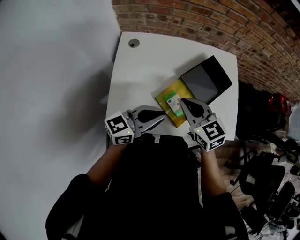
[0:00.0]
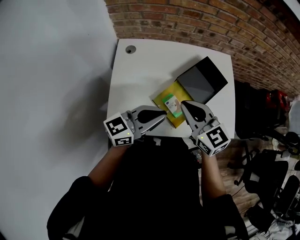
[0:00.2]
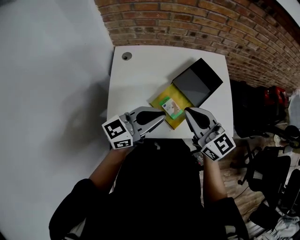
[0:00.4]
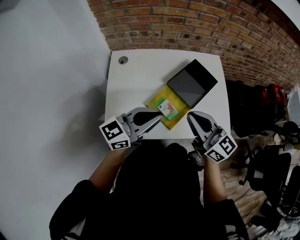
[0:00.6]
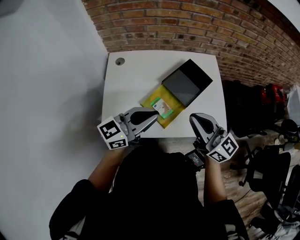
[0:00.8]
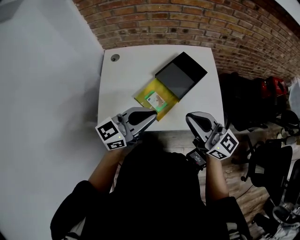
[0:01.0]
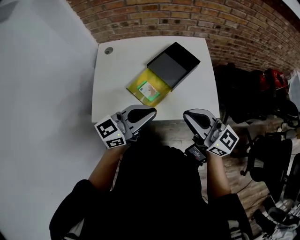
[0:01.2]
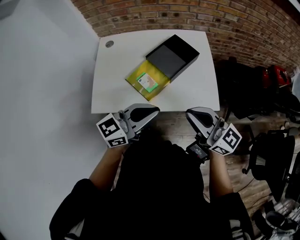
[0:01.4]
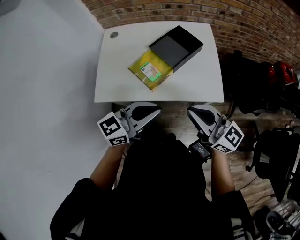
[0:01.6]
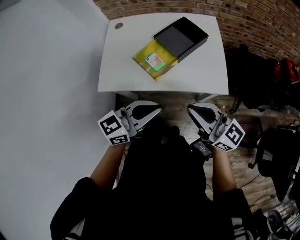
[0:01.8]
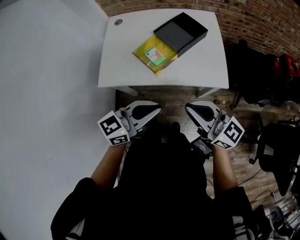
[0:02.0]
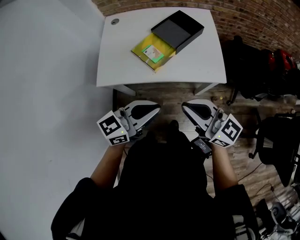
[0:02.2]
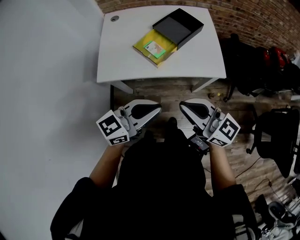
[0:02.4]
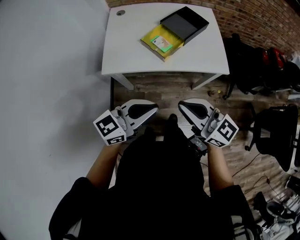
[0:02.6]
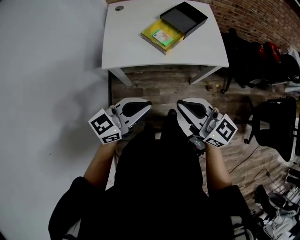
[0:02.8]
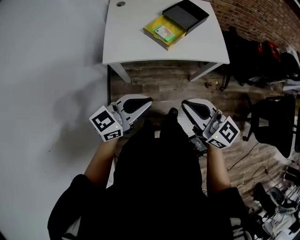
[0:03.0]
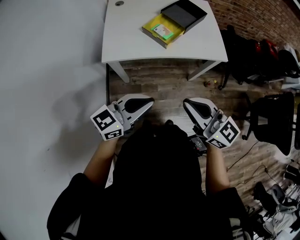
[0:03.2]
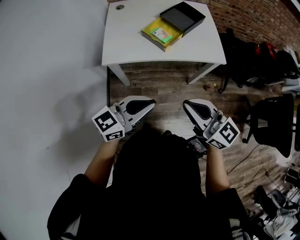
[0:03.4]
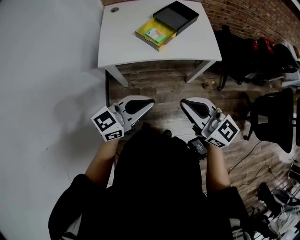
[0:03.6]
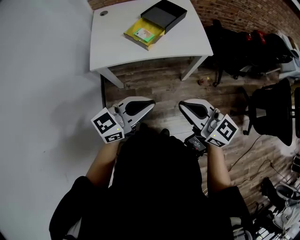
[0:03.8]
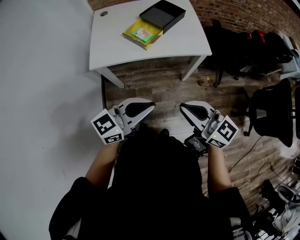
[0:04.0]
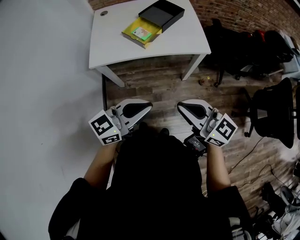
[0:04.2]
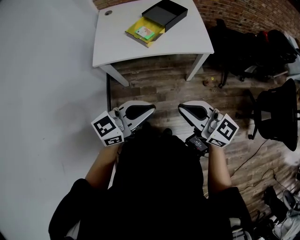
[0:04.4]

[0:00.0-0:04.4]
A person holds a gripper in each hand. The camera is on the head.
0:00.0 to 0:01.4: The grippers both shift to the right, backward and upward by roughly 25 cm. The right gripper tips its fingers upward by approximately 30 degrees.
0:01.4 to 0:03.0: Both grippers move backward and to the left, roughly 30 cm.
0:03.0 to 0:04.4: The grippers both shift to the right and backward by roughly 15 cm.

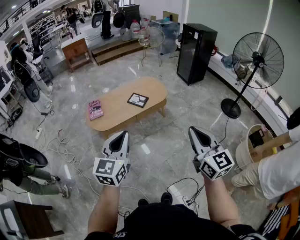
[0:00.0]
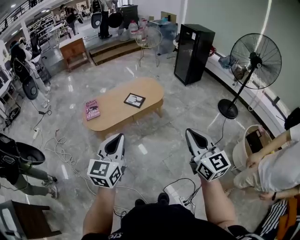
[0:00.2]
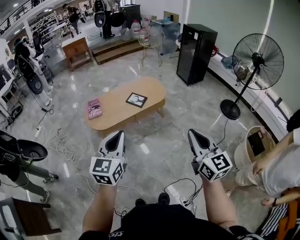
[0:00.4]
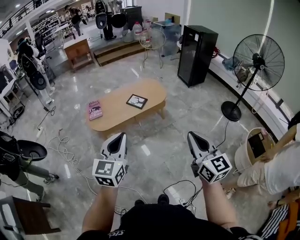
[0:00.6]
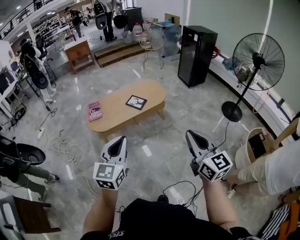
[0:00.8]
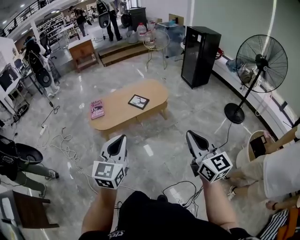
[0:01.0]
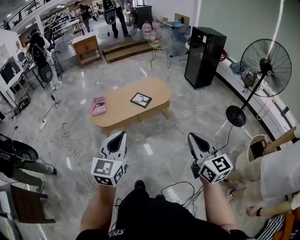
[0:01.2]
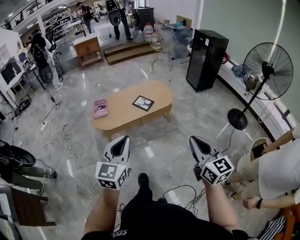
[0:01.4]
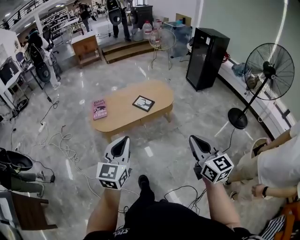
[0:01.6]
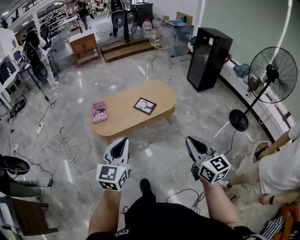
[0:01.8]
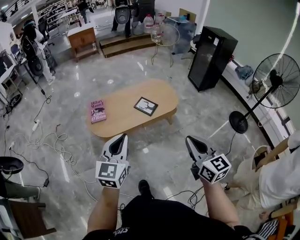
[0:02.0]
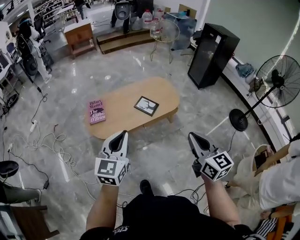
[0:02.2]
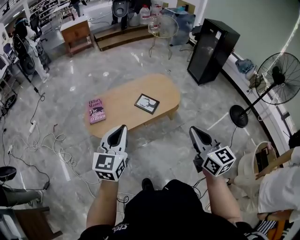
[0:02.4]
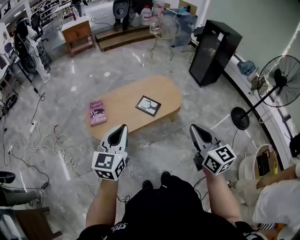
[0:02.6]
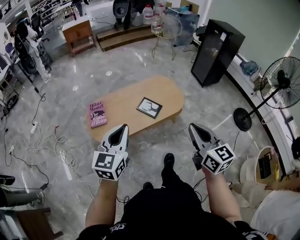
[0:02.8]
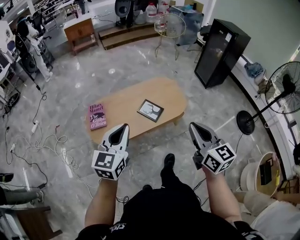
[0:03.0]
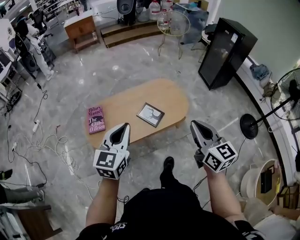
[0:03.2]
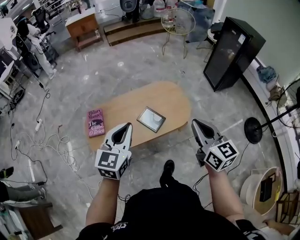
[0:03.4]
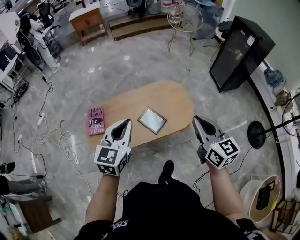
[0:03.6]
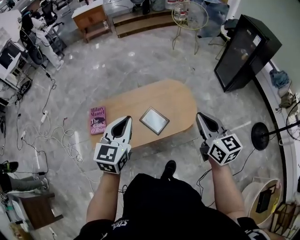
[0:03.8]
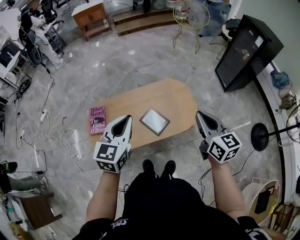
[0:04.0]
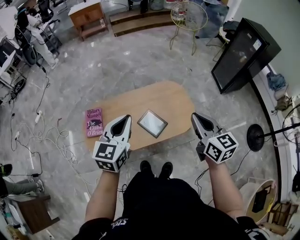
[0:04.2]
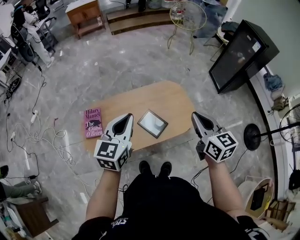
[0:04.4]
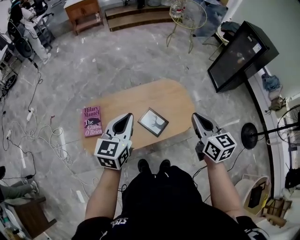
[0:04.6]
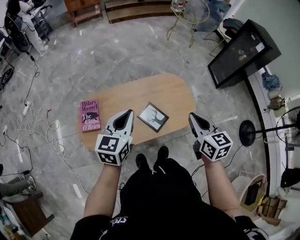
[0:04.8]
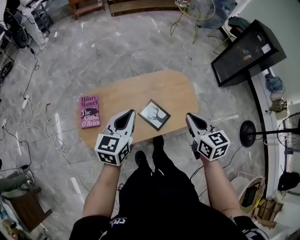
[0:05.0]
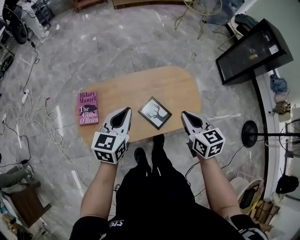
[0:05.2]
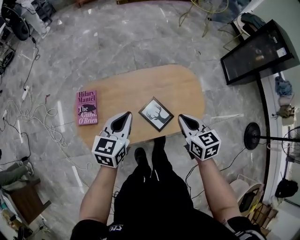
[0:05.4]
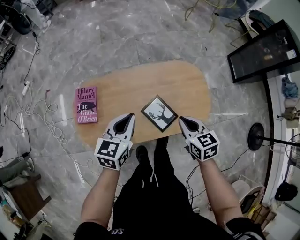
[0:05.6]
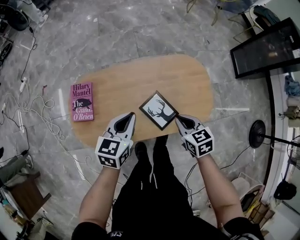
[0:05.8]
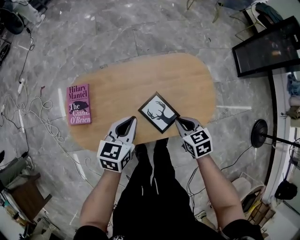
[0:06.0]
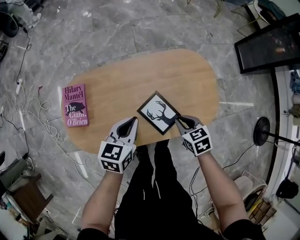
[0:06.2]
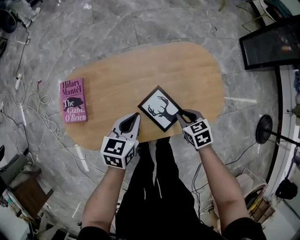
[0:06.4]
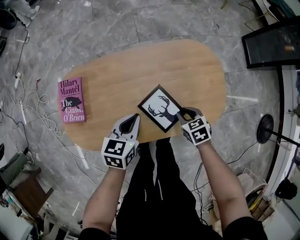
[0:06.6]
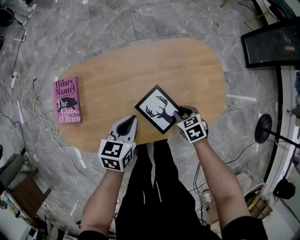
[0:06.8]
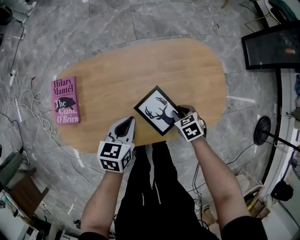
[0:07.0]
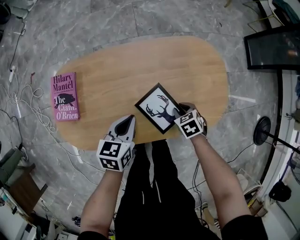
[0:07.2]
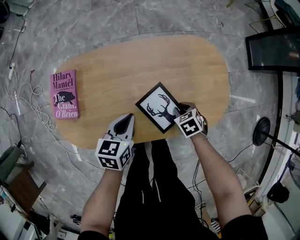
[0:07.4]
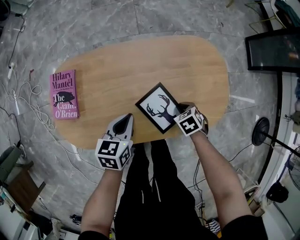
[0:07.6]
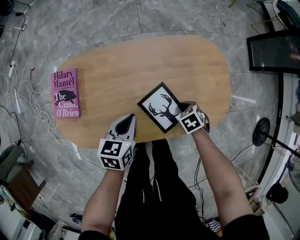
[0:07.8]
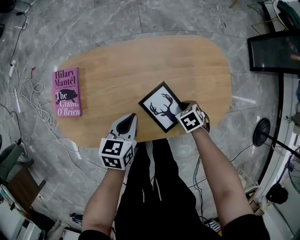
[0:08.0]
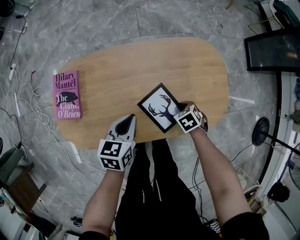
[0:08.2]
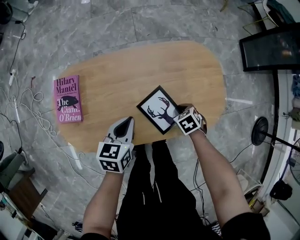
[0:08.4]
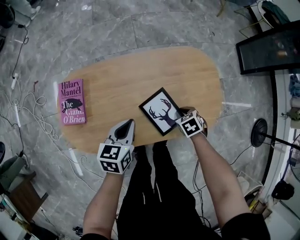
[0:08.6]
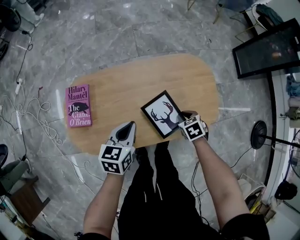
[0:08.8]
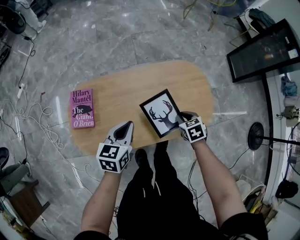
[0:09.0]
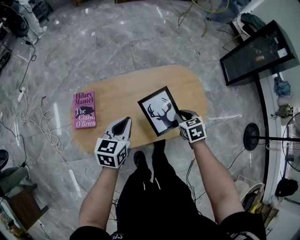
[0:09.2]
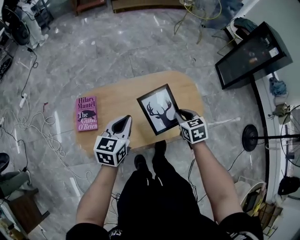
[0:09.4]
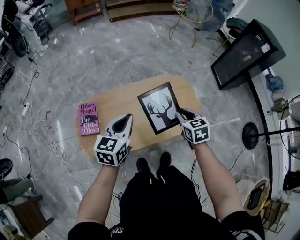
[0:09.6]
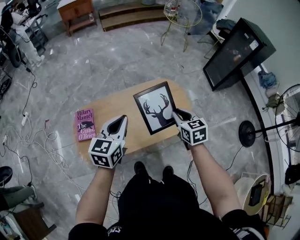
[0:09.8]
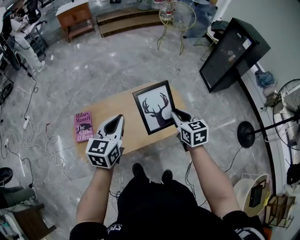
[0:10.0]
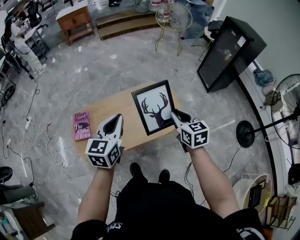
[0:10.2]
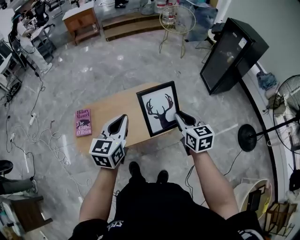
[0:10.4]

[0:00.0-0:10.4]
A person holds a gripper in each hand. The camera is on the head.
0:00.0 to 0:01.4: The right gripper ends up some 5 cm from where it was.
0:01.4 to 0:03.0: The two grippers go about 40 cm forward.
0:03.0 to 0:04.4: Both grippers travel together forward, roughly 30 cm.
0:04.4 to 0:06.0: Both grippers travel together downward, some 35 cm. The right gripper tips its fingers downward by roughly 30 degrees. Meanwhile the left gripper rotates some 20 degrees.
0:06.0 to 0:07.4: Both grippers move downward, some 15 cm. The right gripper turns by roughly 30 degrees.
0:07.4 to 0:09.0: Both grippers move upward, approximately 15 cm.
0:09.0 to 0:10.4: Both grippers travel together upward and to the right, approximately 35 cm. The left gripper swivels approximately 20 degrees. The right gripper angles its fingers upward, by about 40 degrees.

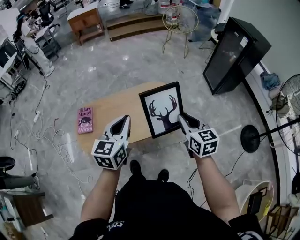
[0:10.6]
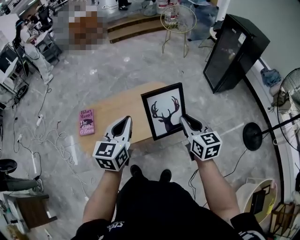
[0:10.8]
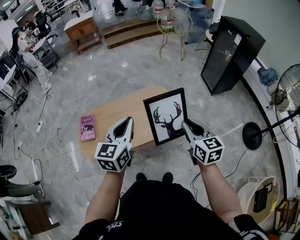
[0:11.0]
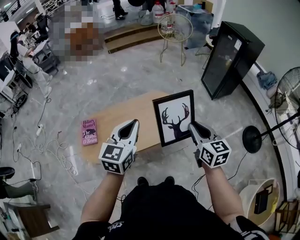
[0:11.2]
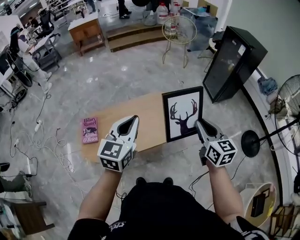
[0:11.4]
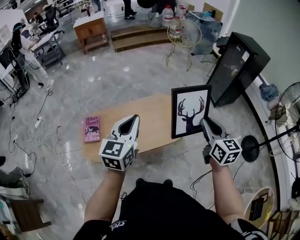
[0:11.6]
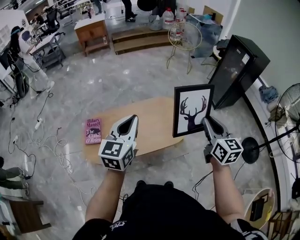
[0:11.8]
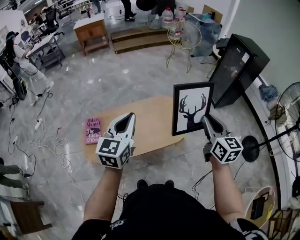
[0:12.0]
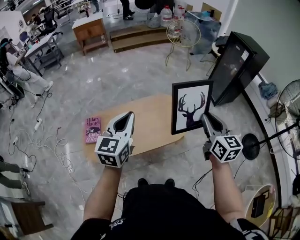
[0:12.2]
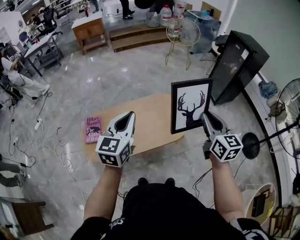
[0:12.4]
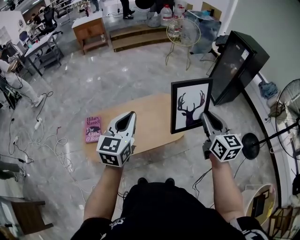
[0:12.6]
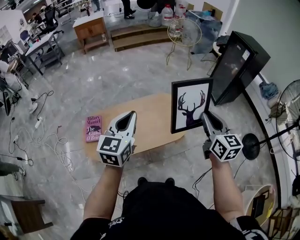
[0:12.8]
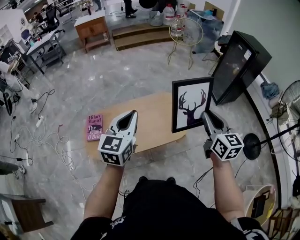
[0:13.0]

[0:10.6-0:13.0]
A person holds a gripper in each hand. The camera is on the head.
0:10.6 to 0:11.8: The right gripper is displaced upward by approximately 10 cm; the left gripper travels to the left and upward by some 10 cm.
0:11.8 to 0:13.0: Both grippers stay put.

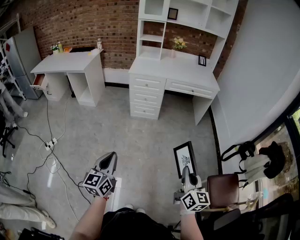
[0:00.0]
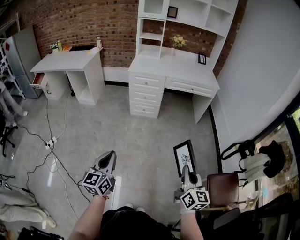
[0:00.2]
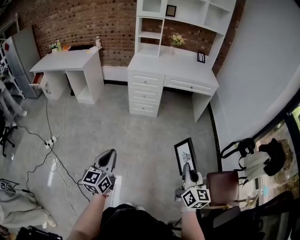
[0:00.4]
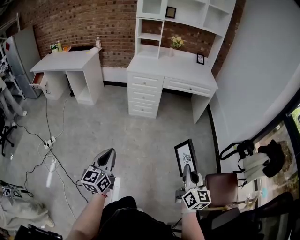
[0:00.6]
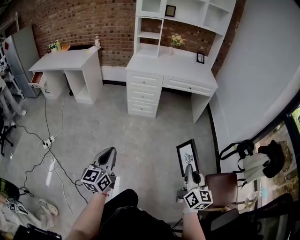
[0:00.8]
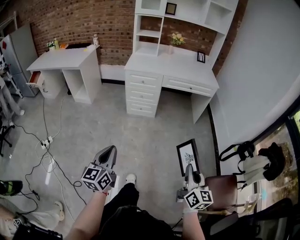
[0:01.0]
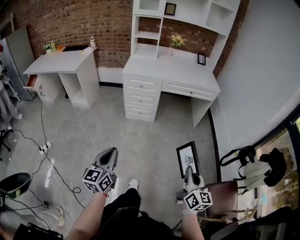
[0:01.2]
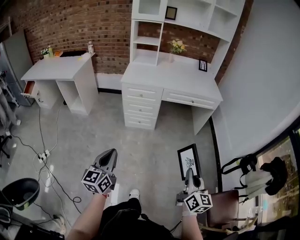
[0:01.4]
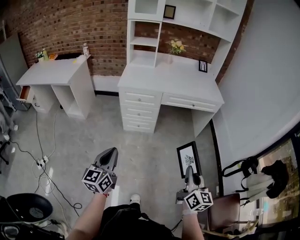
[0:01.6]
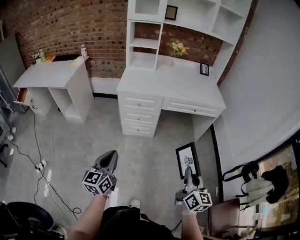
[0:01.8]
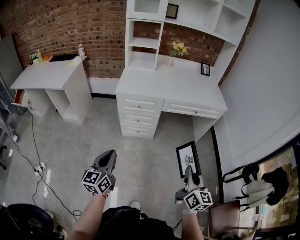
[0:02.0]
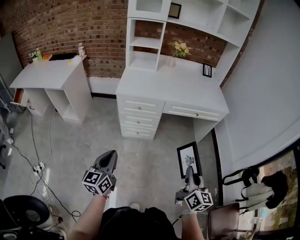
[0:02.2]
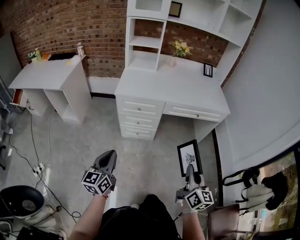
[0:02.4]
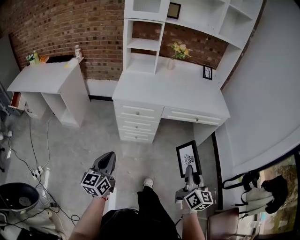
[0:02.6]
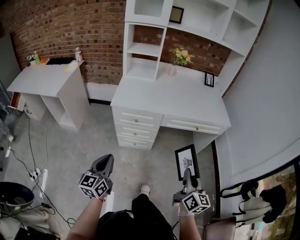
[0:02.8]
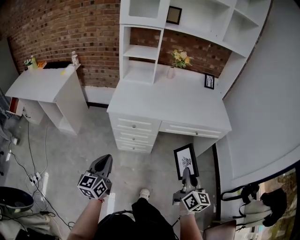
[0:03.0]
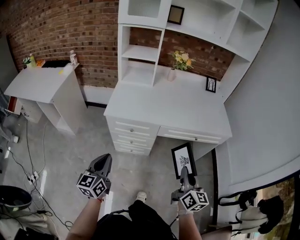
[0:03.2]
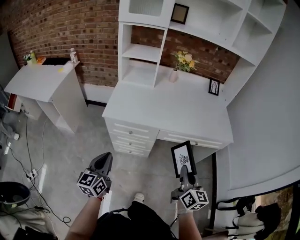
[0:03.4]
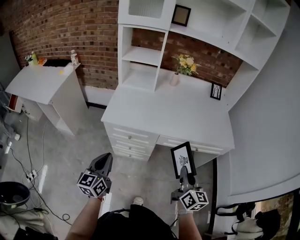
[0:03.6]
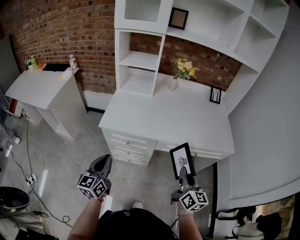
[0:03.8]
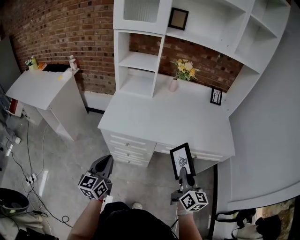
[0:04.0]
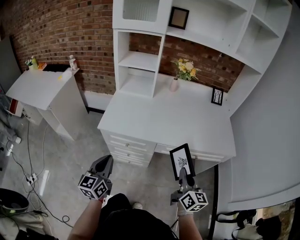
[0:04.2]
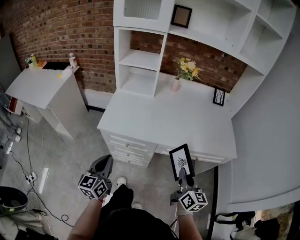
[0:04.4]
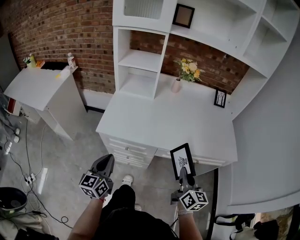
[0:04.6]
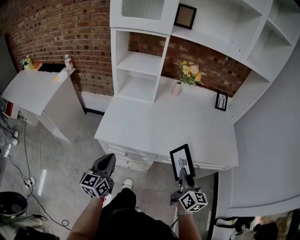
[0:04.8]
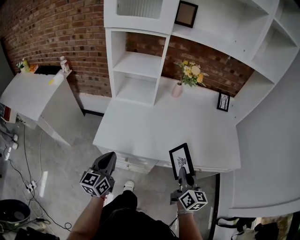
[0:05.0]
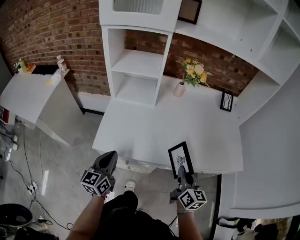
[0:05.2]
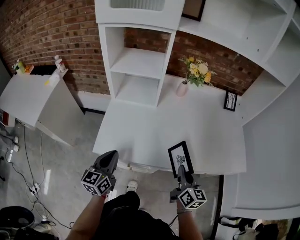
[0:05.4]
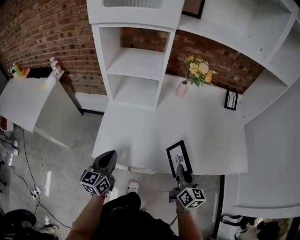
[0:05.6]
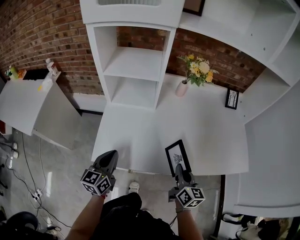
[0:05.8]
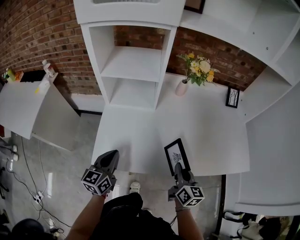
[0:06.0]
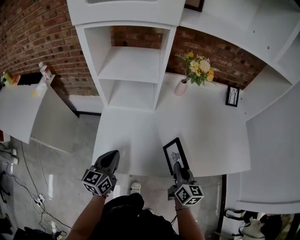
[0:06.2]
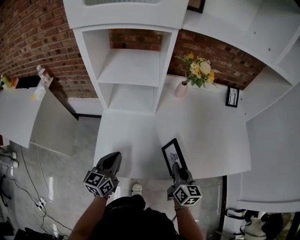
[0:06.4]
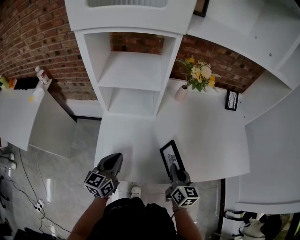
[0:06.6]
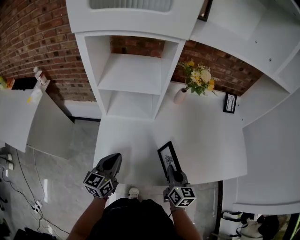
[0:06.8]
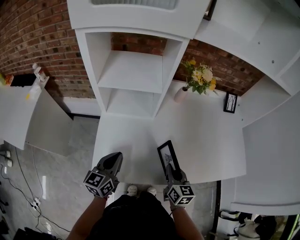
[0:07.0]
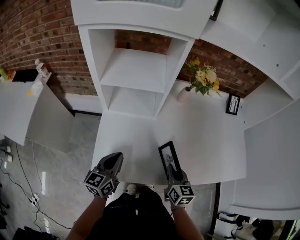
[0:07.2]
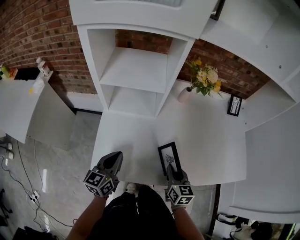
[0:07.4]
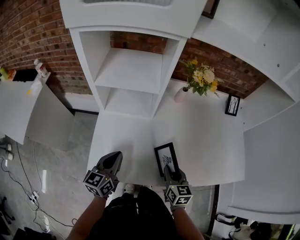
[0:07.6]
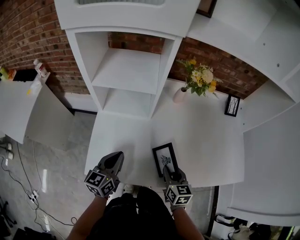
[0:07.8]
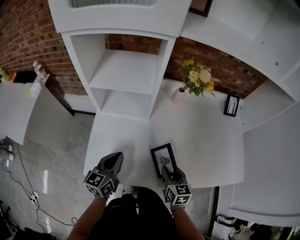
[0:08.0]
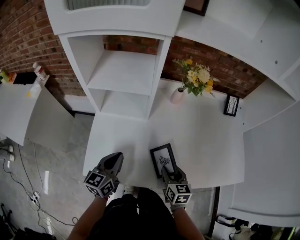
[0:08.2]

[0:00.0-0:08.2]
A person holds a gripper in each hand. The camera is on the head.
0:00.0 to 0:01.6: The two grippers go approximately 25 cm forward.
0:01.6 to 0:03.2: The grippers both shift forward by approximately 30 cm.
0:03.2 to 0:05.0: Both grippers travel together forward, approximately 25 cm.
0:05.0 to 0:06.6: The left gripper shifts some 15 cm forward; the right gripper moves forward, to the left and downward, some 20 cm.
0:06.6 to 0:08.2: The left gripper ends up some 5 cm from where it was. The right gripper ends up approximately 5 cm from where it was, and opens its fingers.
